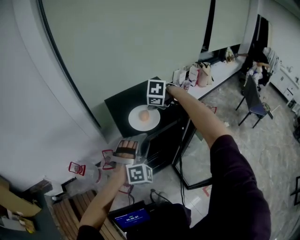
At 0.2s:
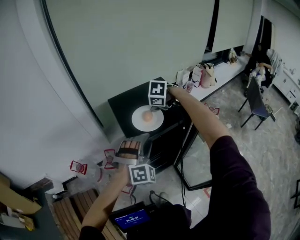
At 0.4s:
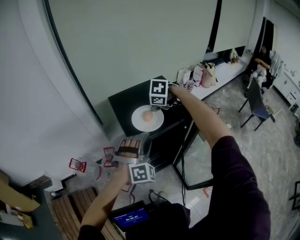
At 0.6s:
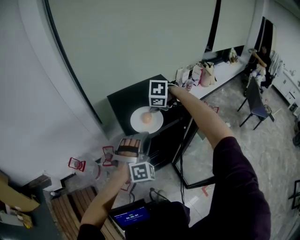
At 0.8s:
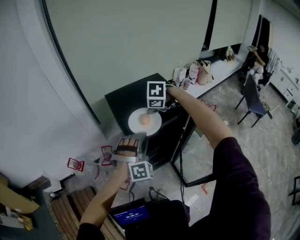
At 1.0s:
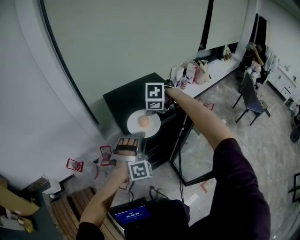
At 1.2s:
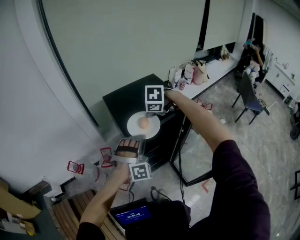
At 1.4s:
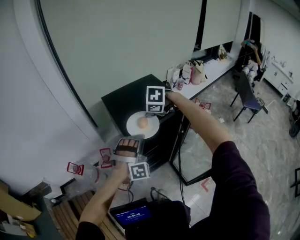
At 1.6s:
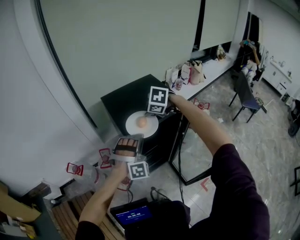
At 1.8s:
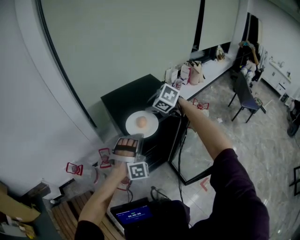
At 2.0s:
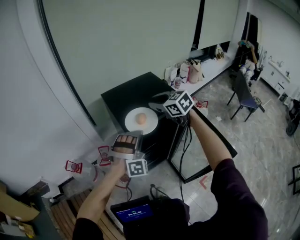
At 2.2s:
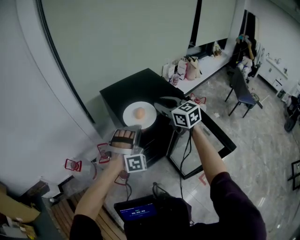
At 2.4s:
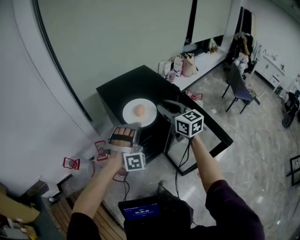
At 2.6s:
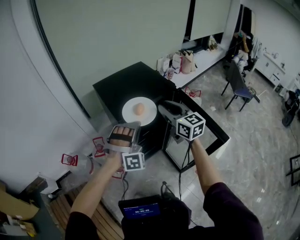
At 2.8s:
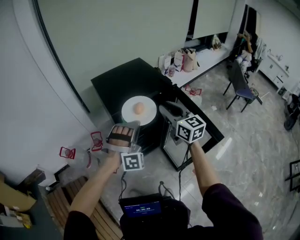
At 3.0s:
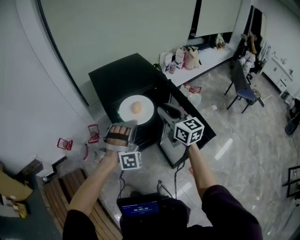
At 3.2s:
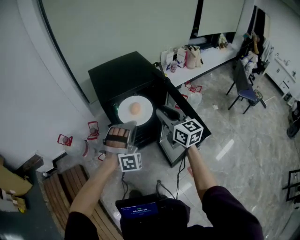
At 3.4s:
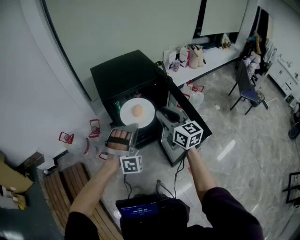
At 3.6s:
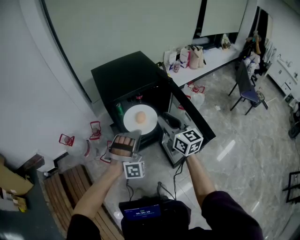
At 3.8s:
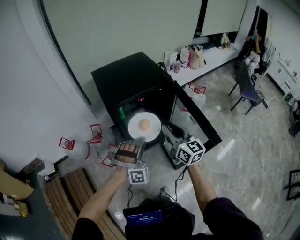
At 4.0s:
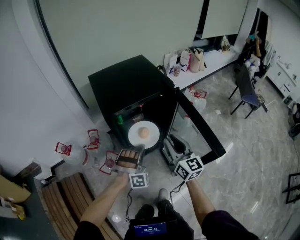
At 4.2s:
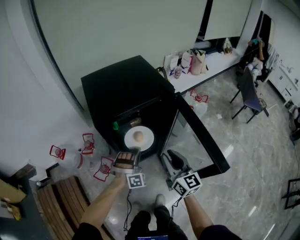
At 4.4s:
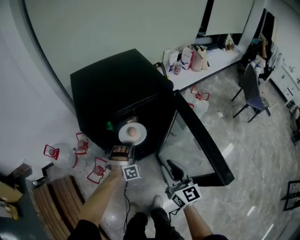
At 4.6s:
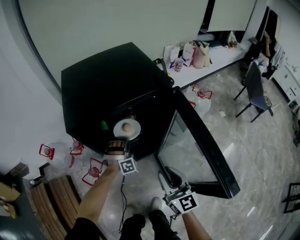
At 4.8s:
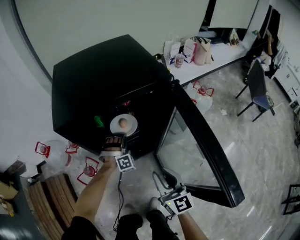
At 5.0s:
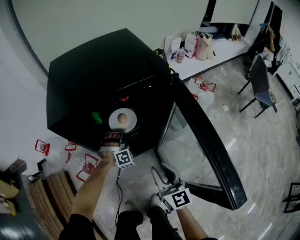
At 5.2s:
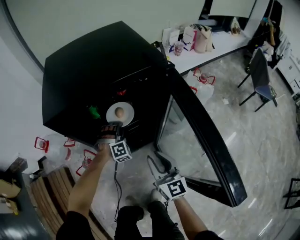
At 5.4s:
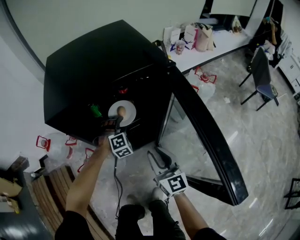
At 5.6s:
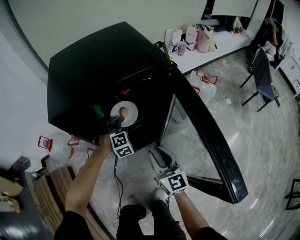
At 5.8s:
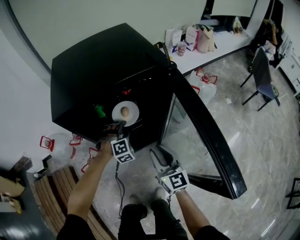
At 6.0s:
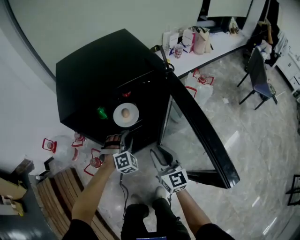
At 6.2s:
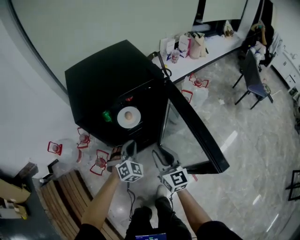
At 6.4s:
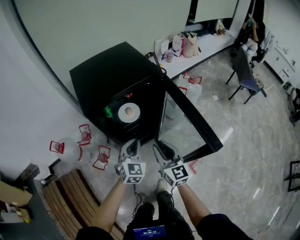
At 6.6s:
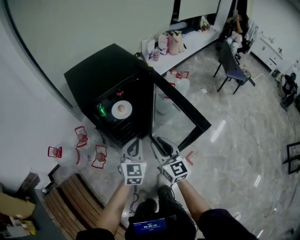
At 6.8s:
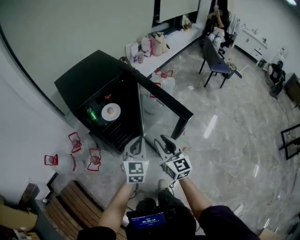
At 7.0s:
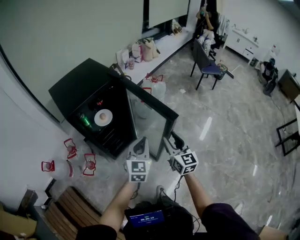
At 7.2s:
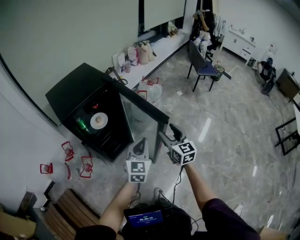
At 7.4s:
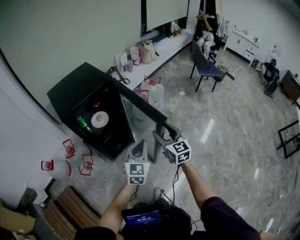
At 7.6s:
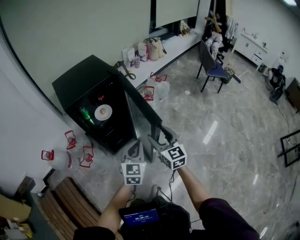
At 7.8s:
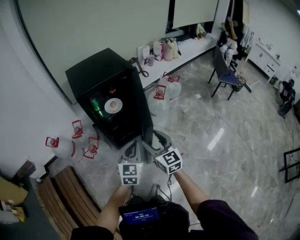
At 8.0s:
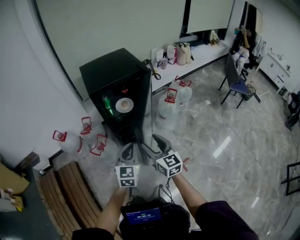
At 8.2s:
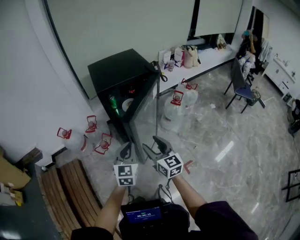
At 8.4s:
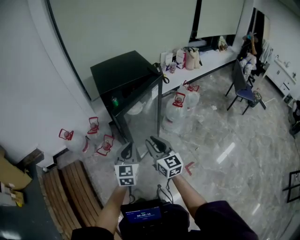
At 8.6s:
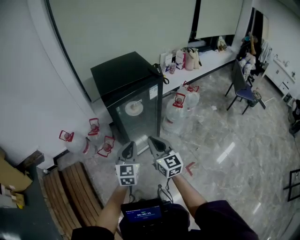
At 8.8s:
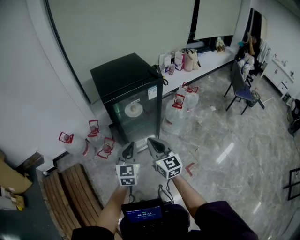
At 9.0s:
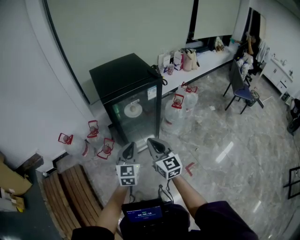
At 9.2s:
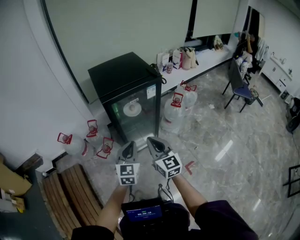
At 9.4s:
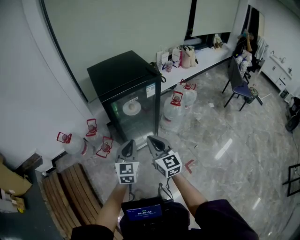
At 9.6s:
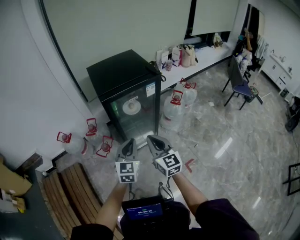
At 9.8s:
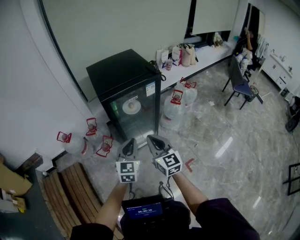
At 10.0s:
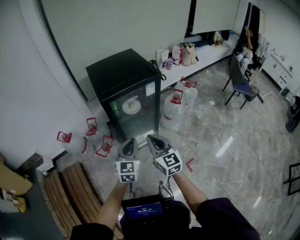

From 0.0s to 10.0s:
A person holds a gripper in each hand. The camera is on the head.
From 0.0s to 1.4s: The right gripper travels backward by some 5 cm.
From 1.4s to 2.8s: The right gripper heads backward and to the right, covering roughly 20 cm, and tilts its fingers roughly 70 degrees upward. The left gripper heads backward, covering approximately 10 cm.
From 2.8s to 4.2s: The left gripper moves downward, about 25 cm, while the right gripper moves downward and backward, approximately 15 cm.
From 4.2s to 5.8s: The left gripper shifts about 20 cm downward and forward, changes its angle by approximately 30 degrees, and opens its fingers. Meanwhile the right gripper travels downward by roughly 15 cm.
From 5.8s to 7.2s: The left gripper moves roughly 50 cm, tilts its fingers some 30 degrees upward, and closes; the right gripper shifts by about 35 cm, turns by roughly 20 degrees, and opens up.
From 7.2s to 8.6s: The left gripper changes place by some 20 cm, and turns by some 30 degrees. The right gripper moves approximately 25 cm, rotates approximately 30 degrees, and closes its fingers.
From 8.6s to 10.0s: The grippers make only small movements.

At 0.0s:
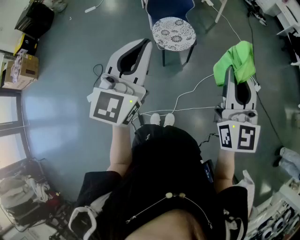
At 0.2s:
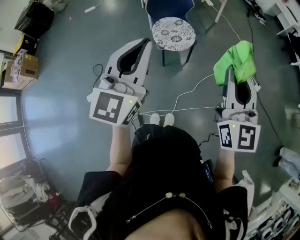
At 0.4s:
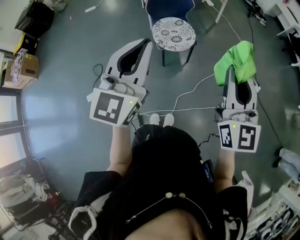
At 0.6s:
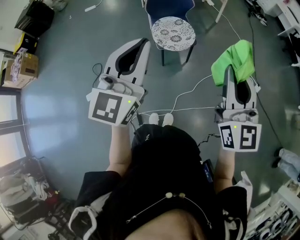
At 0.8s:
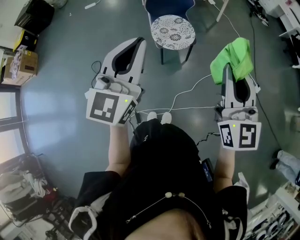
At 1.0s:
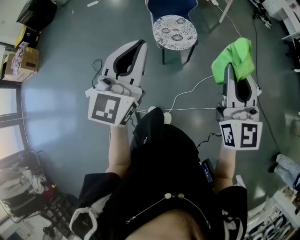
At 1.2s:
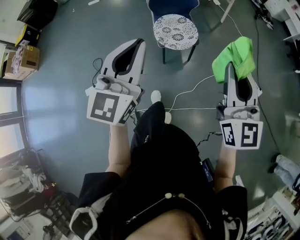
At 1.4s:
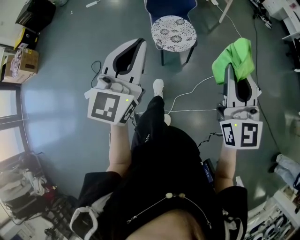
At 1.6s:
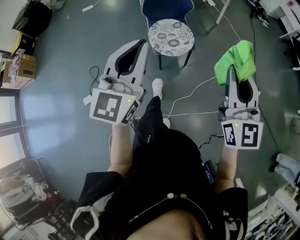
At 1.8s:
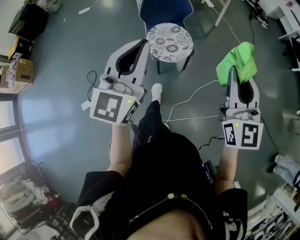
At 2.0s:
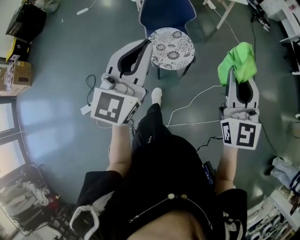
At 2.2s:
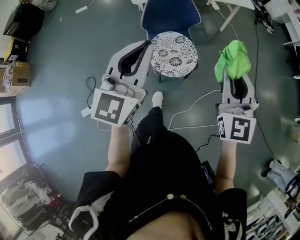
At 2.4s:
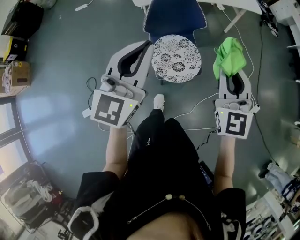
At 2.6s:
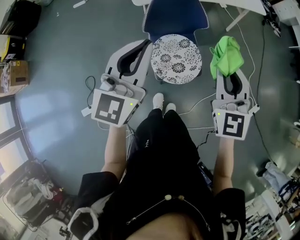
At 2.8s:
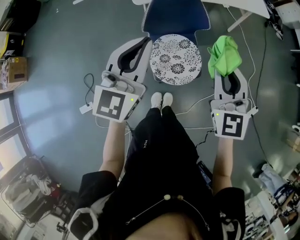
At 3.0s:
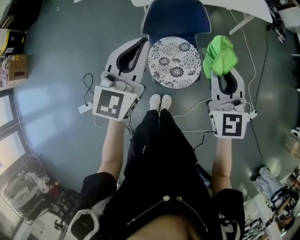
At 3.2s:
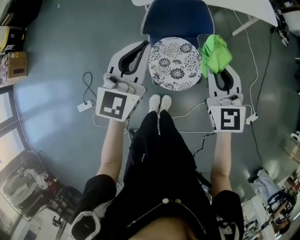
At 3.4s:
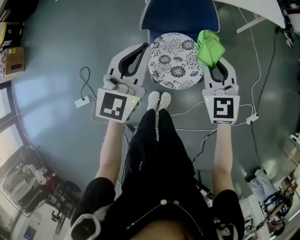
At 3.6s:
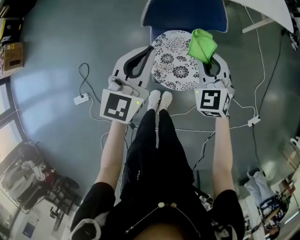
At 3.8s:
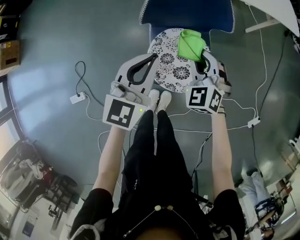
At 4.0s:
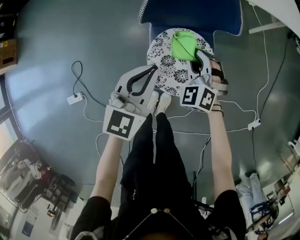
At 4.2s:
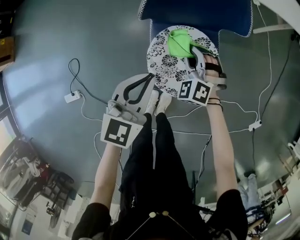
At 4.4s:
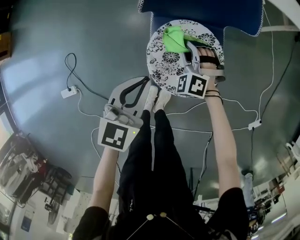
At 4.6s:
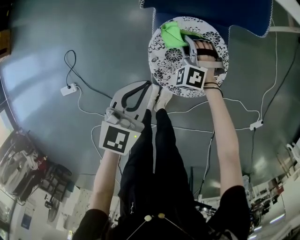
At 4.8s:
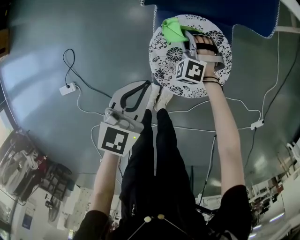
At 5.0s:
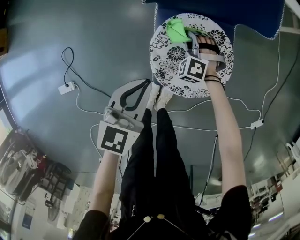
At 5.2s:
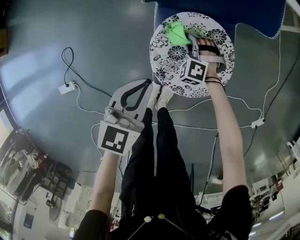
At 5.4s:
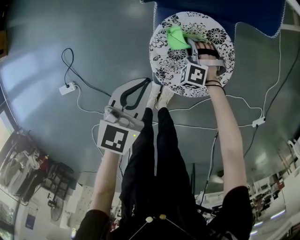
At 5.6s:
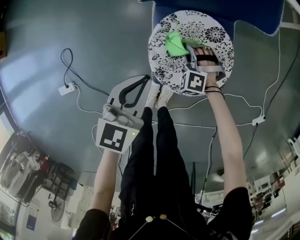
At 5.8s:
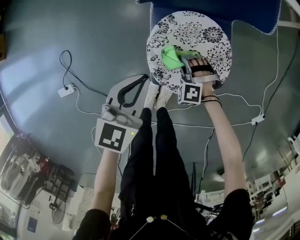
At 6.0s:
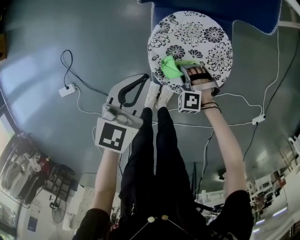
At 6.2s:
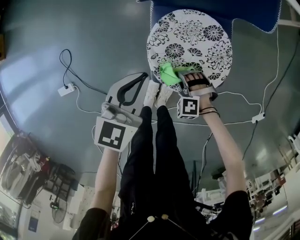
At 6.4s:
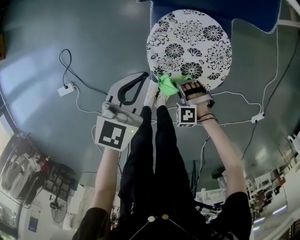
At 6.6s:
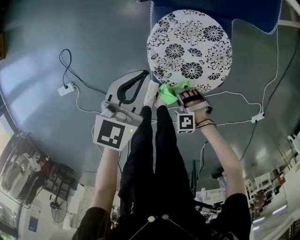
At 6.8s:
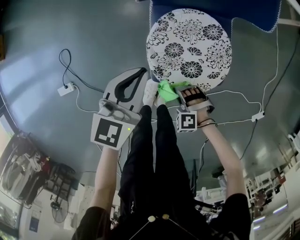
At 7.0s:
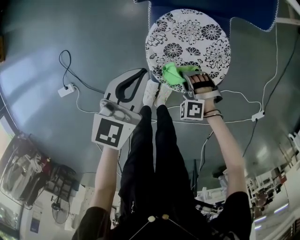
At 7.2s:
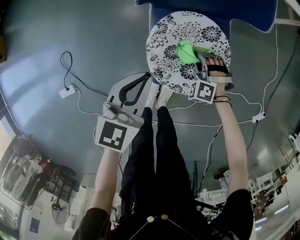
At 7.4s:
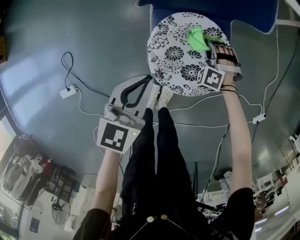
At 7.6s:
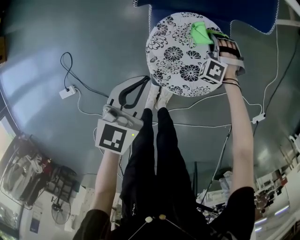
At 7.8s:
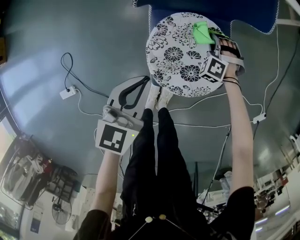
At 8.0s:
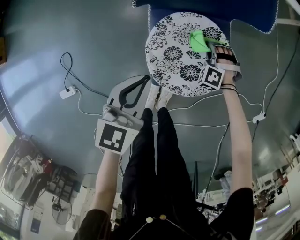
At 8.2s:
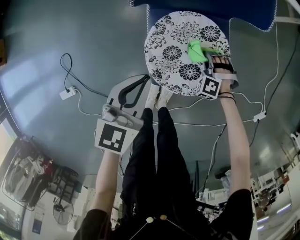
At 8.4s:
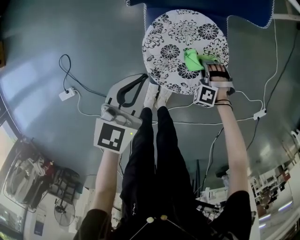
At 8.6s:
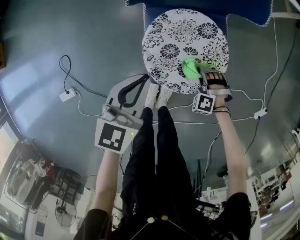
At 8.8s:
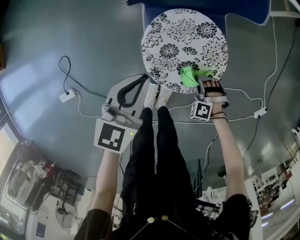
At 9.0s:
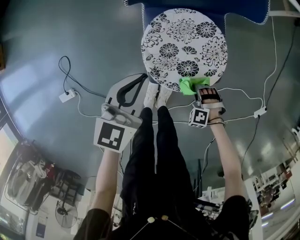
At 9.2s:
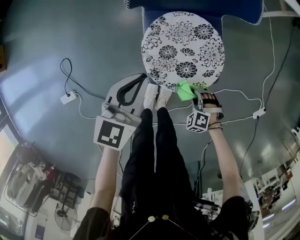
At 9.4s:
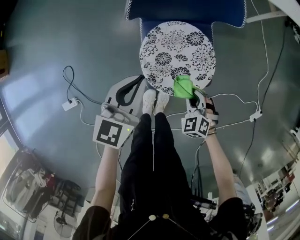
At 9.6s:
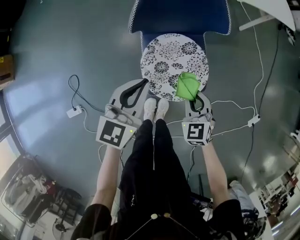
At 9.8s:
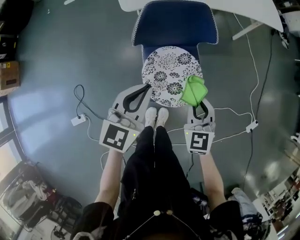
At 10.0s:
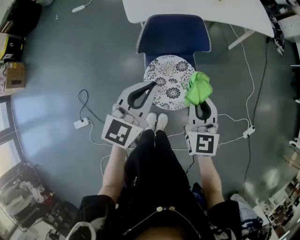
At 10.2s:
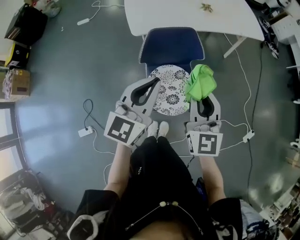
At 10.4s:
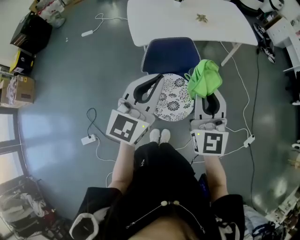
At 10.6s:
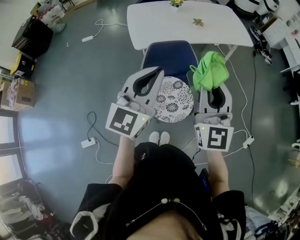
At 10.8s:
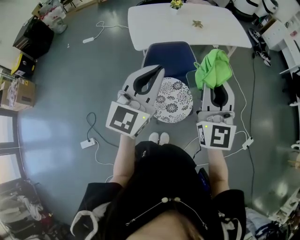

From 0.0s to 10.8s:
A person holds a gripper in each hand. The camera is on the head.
From 0.0s to 1.6s: The two grippers go approximately 10 cm forward.
From 1.6s to 3.0s: The pair of grippers is taken forward, some 50 cm.
From 3.0s to 4.6s: Both grippers travel together downward, about 50 cm. The right gripper twists approximately 50 degrees counterclockwise, seen from behind. Meanwhile the left gripper tips its fingers downward by some 30 degrees.
From 4.6s to 6.2s: The right gripper heads backward and downward, covering about 20 cm, and rotates approximately 30 degrees.
From 6.2s to 7.8s: The right gripper ends up about 25 cm from where it was, and turns by about 30 degrees.
From 7.8s to 9.2s: The right gripper moves backward, approximately 25 cm, and changes its angle by roughly 20 degrees.
From 9.2s to 10.8s: The right gripper moves upward, some 70 cm, and points its fingers roughly 90 degrees further upward, while the left gripper is displaced upward by about 50 cm, and points its fingers roughly 30 degrees further upward.

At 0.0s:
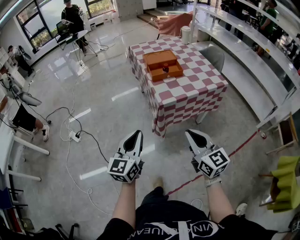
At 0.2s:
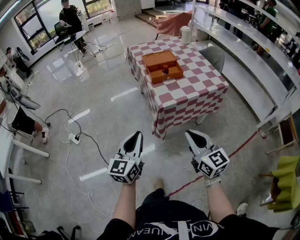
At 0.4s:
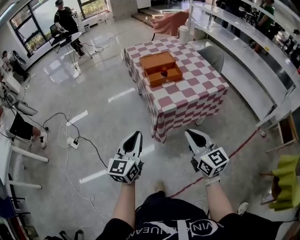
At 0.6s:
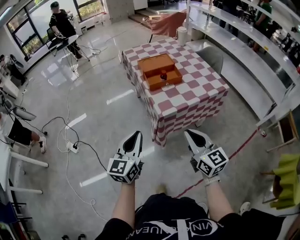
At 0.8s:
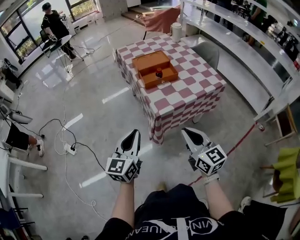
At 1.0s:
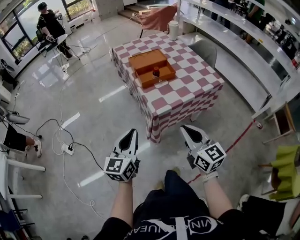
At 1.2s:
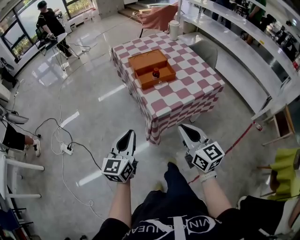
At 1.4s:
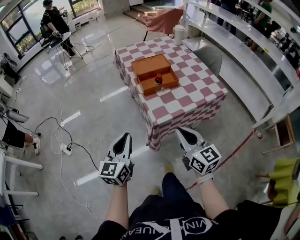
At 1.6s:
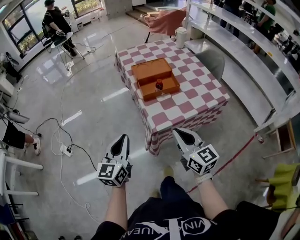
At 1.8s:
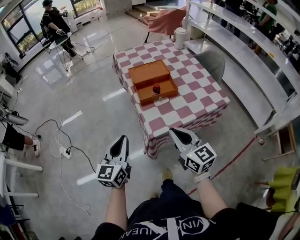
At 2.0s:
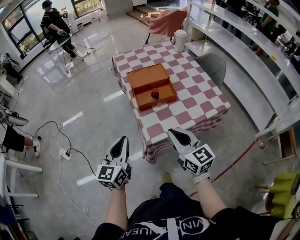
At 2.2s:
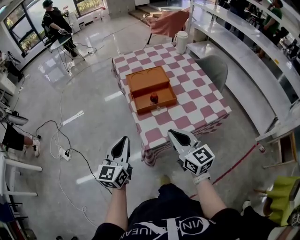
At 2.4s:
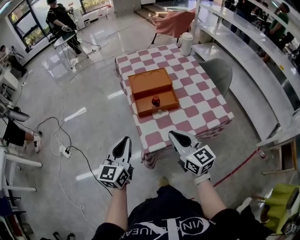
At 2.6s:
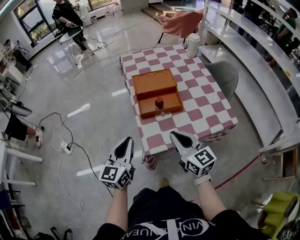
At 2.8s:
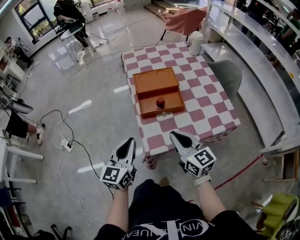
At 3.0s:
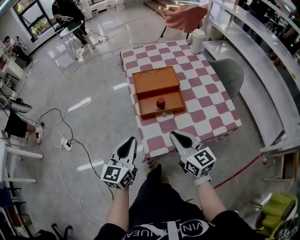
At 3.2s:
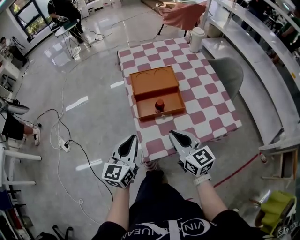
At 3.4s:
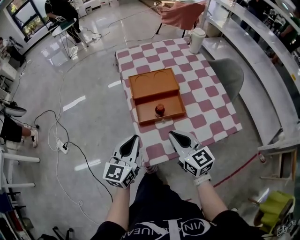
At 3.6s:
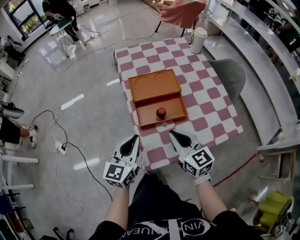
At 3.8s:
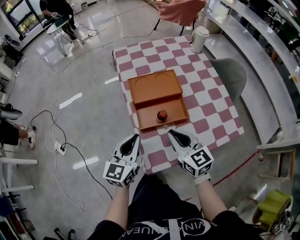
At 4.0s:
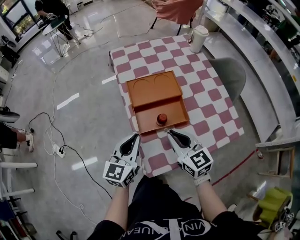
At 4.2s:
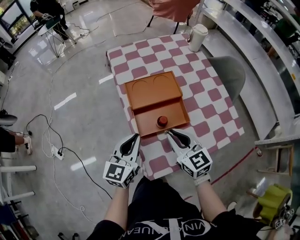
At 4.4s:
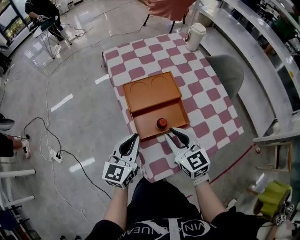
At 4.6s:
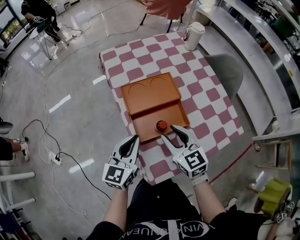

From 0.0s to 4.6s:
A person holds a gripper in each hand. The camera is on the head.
From 0.0s to 1.6s: The two grippers go roughly 20 cm forward.
From 1.6s to 3.0s: The grippers both shift forward and to the right by about 15 cm.
From 3.0s to 4.6s: Both grippers move forward, about 15 cm. The right gripper opens its fingers.
